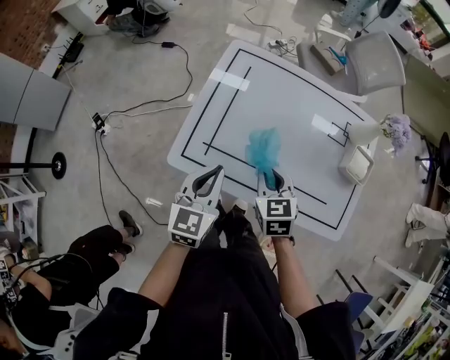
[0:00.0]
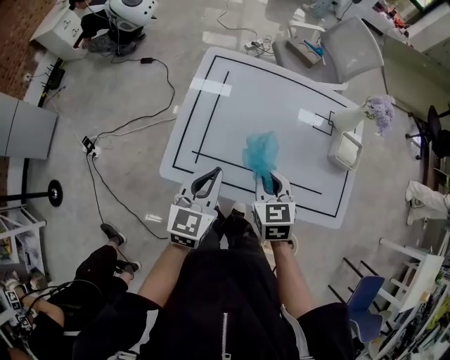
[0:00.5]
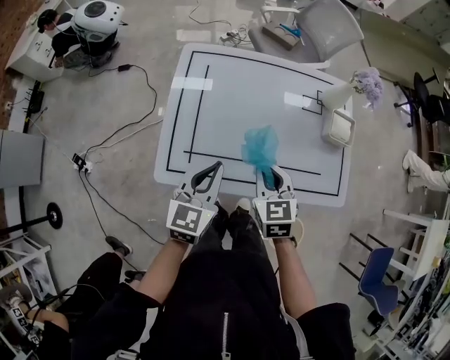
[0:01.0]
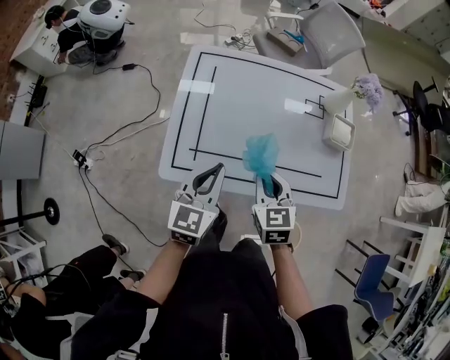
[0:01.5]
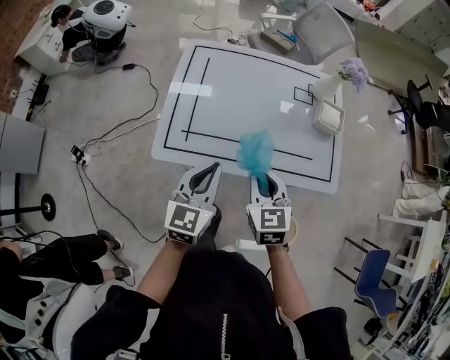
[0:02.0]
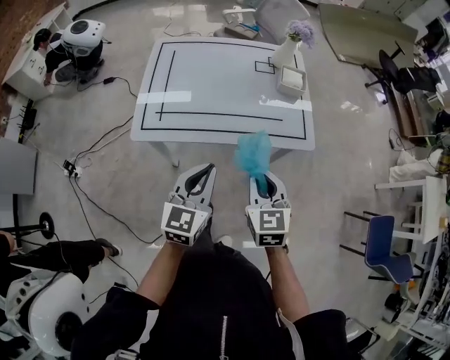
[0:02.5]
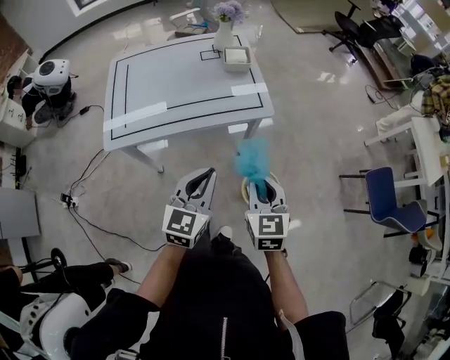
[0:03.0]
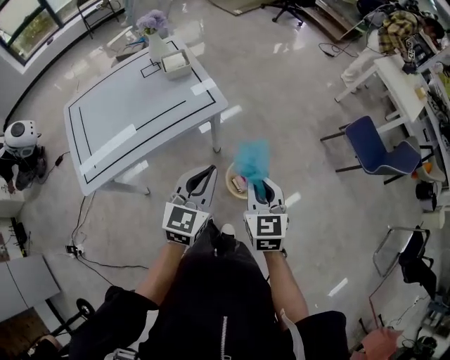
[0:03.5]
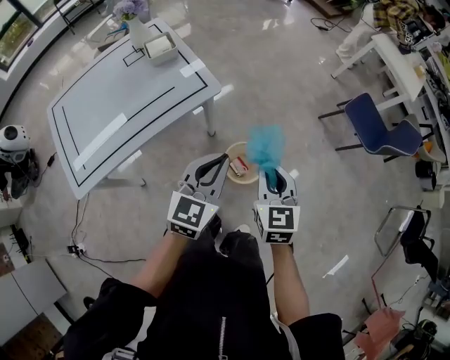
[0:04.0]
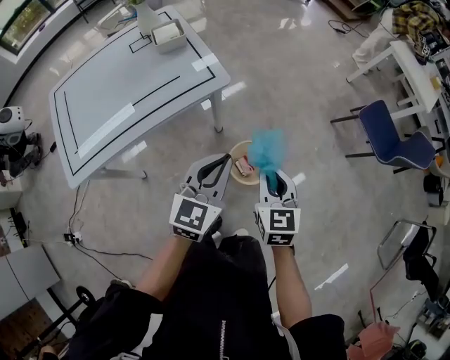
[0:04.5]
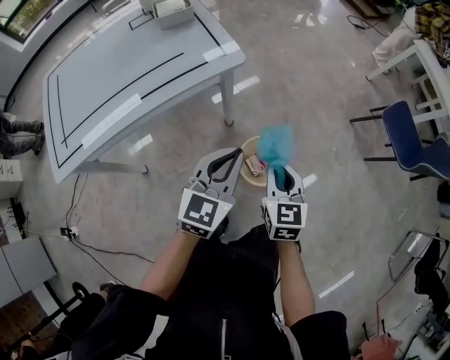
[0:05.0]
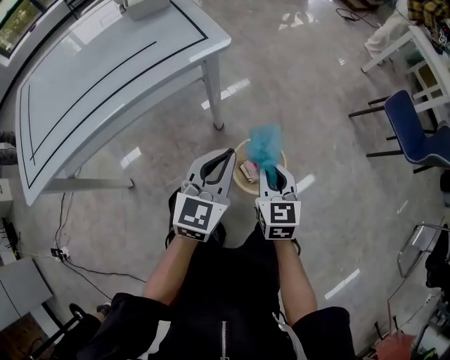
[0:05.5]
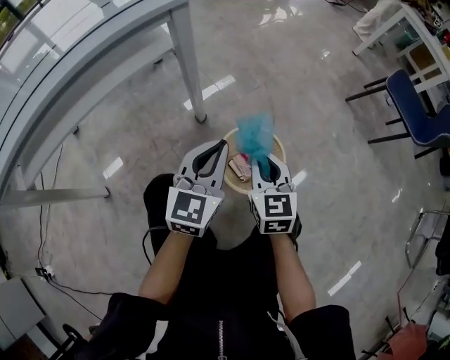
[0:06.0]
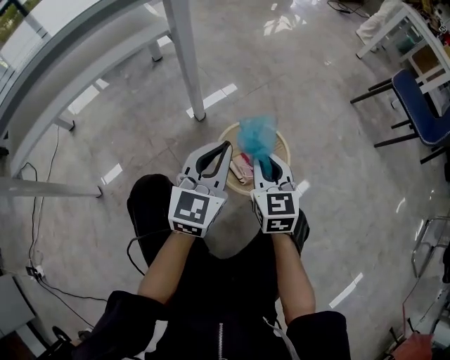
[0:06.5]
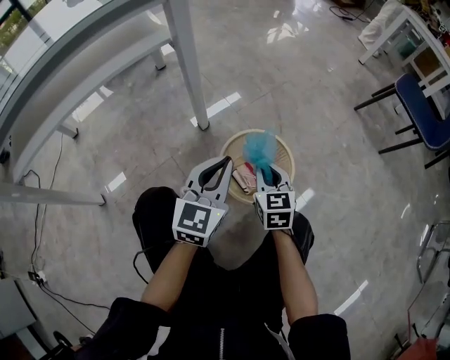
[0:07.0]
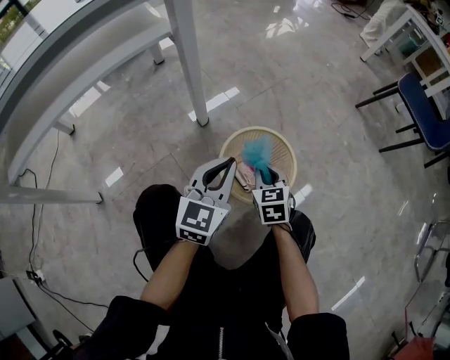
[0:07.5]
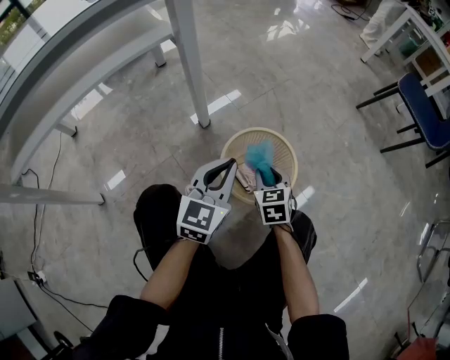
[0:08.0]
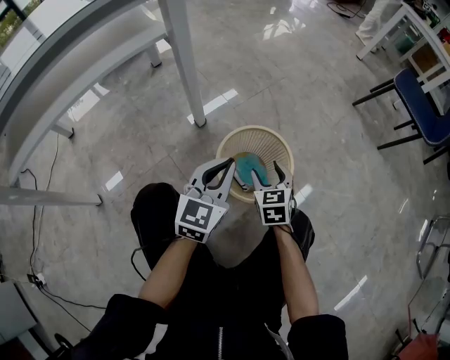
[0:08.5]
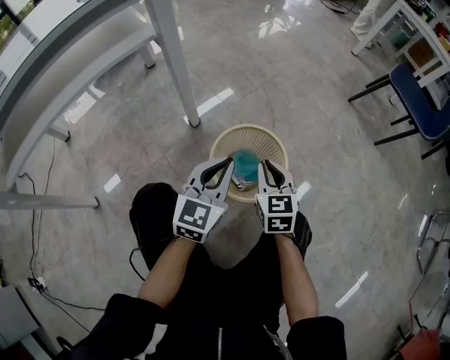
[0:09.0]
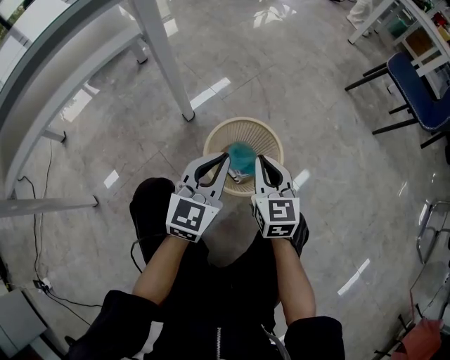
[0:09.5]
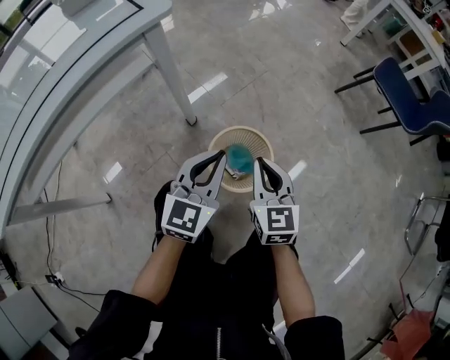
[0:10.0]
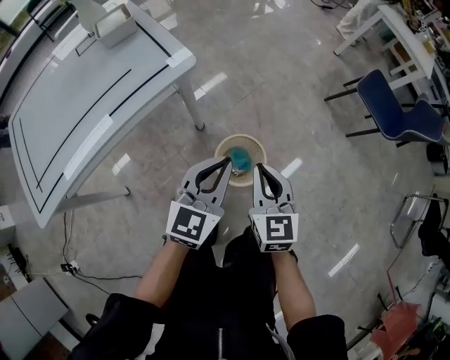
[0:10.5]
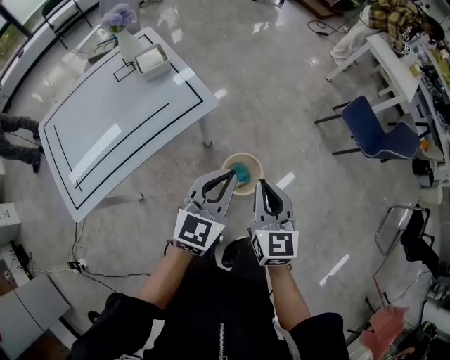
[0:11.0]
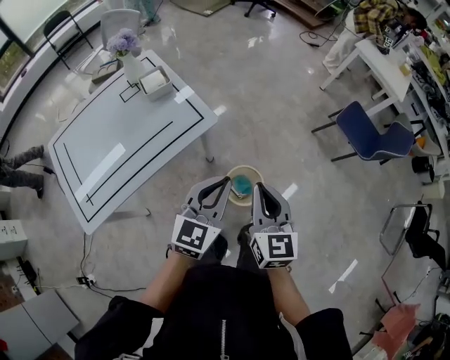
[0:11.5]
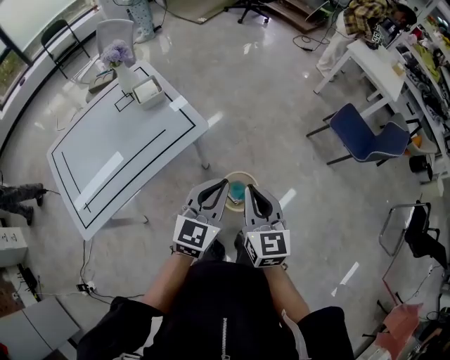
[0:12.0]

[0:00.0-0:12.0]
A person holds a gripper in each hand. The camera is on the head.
0:00.0 to 0:02.0: The left gripper moves backward, approximately 10 cm; the right gripper moves backward and upward, roughly 15 cm.
0:02.0 to 0:04.0: Both grippers are carried approximately 50 cm. The left gripper changes its angle by about 50 degrees. Meanwhile the right gripper swivels roughly 50 degrees.
0:04.0 to 0:06.0: Both grippers travel together downward, approximately 50 cm.
0:06.0 to 0:08.0: The right gripper heads downward, covering about 20 cm, while the left gripper travels downward by roughly 15 cm.
0:08.0 to 0:10.0: The left gripper goes roughly 15 cm upward. The right gripper is displaced upward by approximately 25 cm, rotates some 20 degrees, and opens and closes again.
0:10.0 to 0:12.0: Both grippers move upward, about 50 cm.

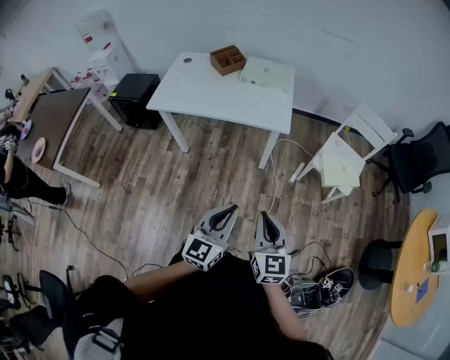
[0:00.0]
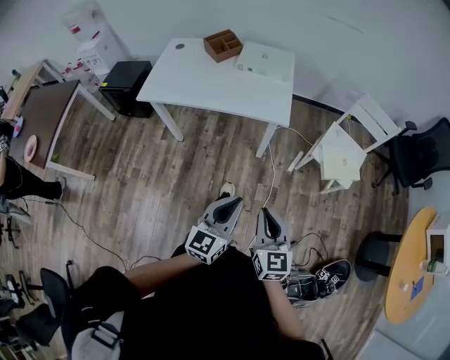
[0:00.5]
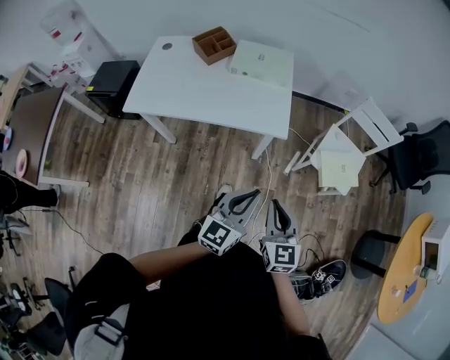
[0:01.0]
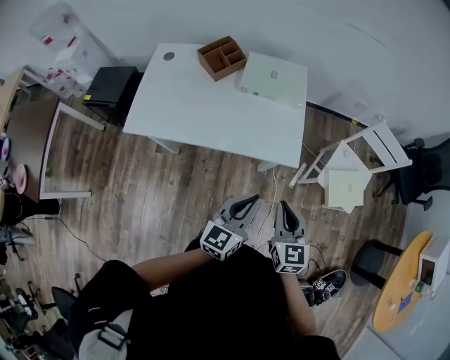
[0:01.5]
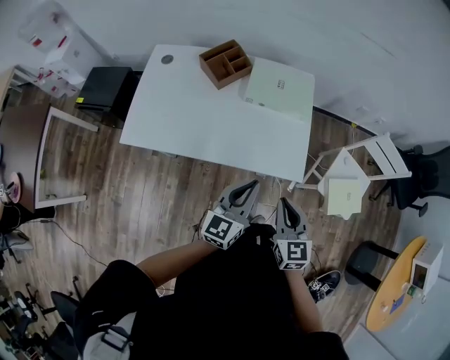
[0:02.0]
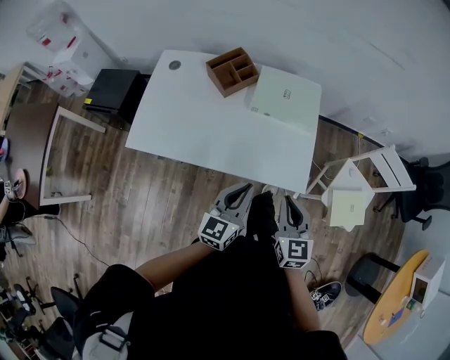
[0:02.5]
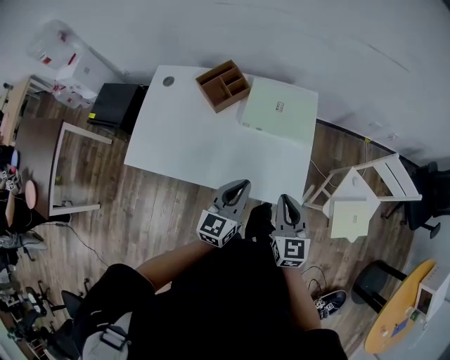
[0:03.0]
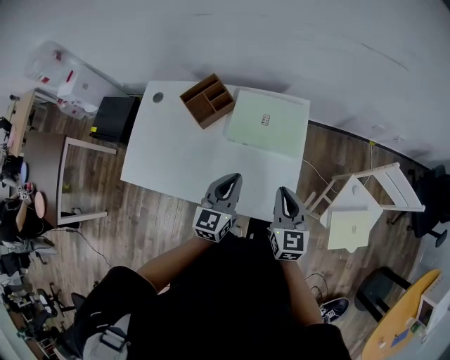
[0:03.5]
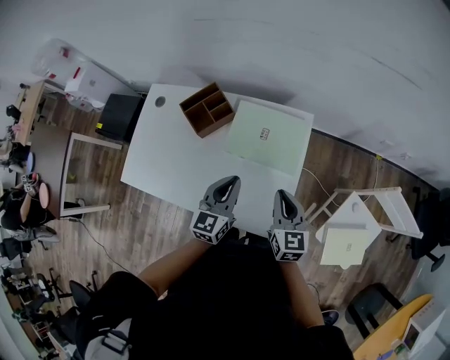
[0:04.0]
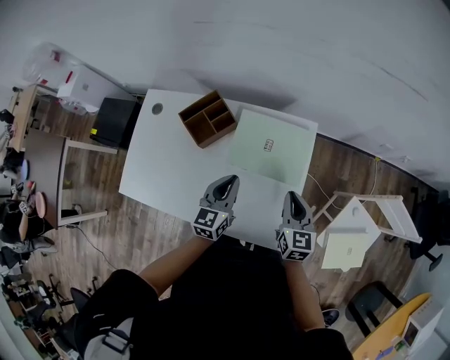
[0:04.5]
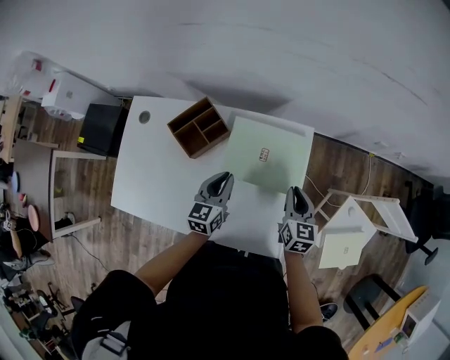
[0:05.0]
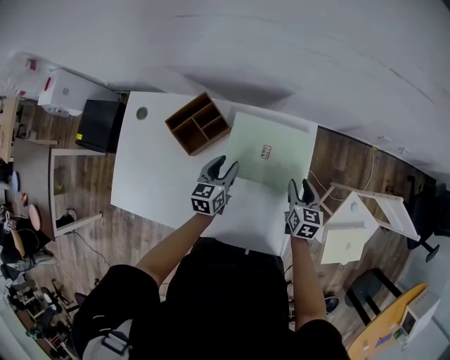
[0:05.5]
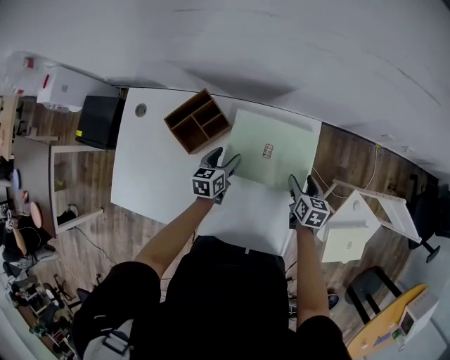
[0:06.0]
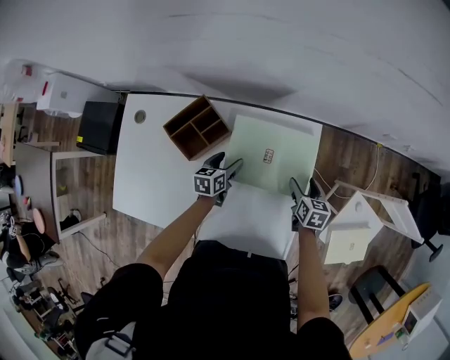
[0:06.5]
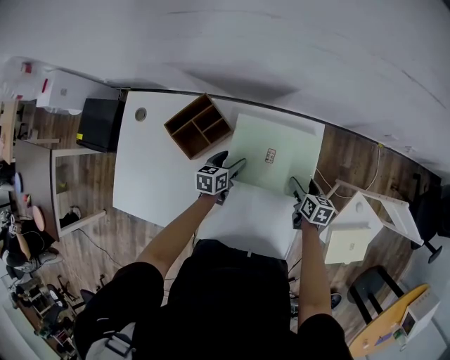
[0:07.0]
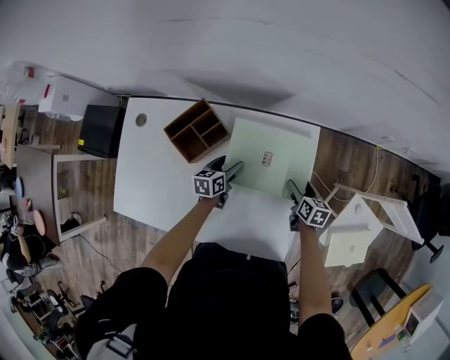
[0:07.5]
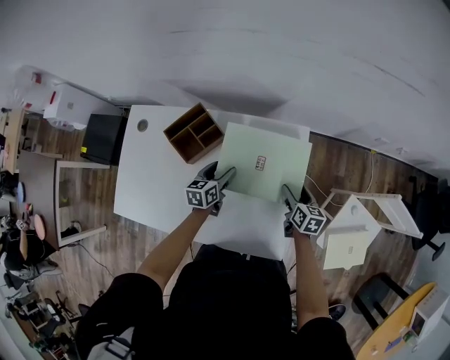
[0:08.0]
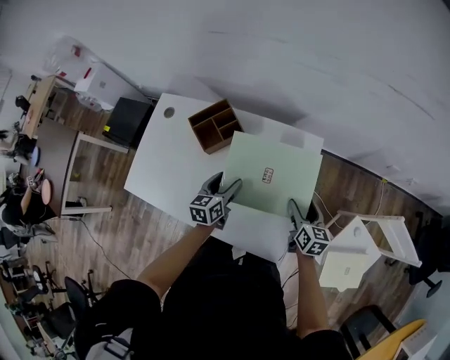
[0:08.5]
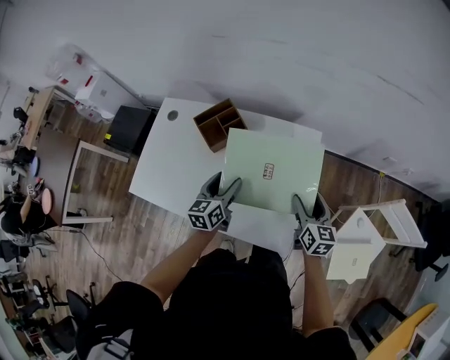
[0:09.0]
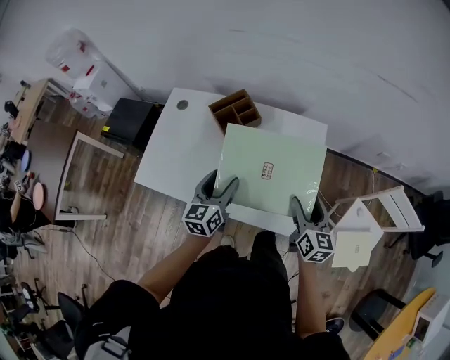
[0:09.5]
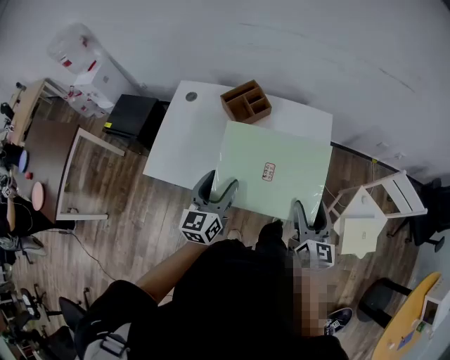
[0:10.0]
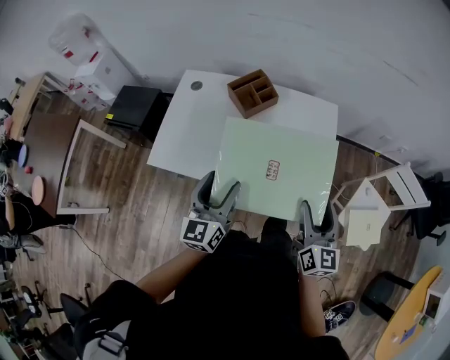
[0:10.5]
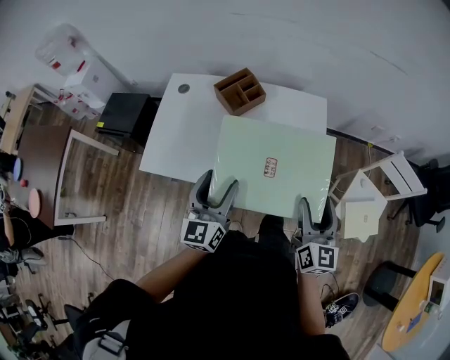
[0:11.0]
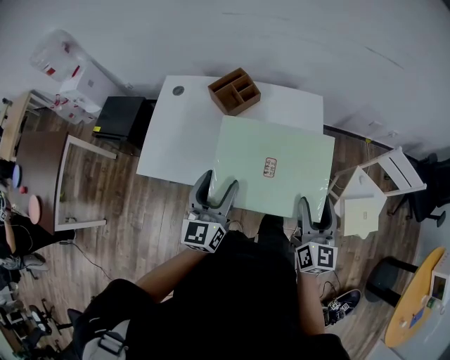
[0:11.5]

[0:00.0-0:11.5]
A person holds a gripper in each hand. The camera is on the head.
0:00.0 to 0:02.0: Both grippers are carried forward, roughly 50 cm.
0:02.0 to 0:04.0: The two grippers go about 30 cm forward.
0:04.0 to 0:06.0: The right gripper goes about 25 cm downward and forward, swivels about 30 degrees, and opens its fingers, while the left gripper heads downward, forward and to the left, covering some 30 cm, rotates some 30 degrees, and opens its fingers.
0:06.0 to 0:07.5: There are only small adjustments of the grippers.
0:07.5 to 0:09.5: The grippers both shift upward and backward by about 35 cm. The left gripper turns by some 30 degrees; the right gripper turns by about 30 degrees.
0:09.5 to 0:11.5: The grippers both shift backward and upward by some 15 cm.

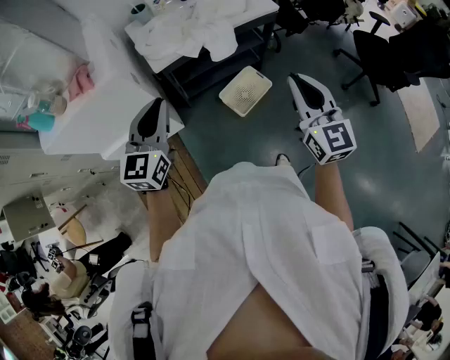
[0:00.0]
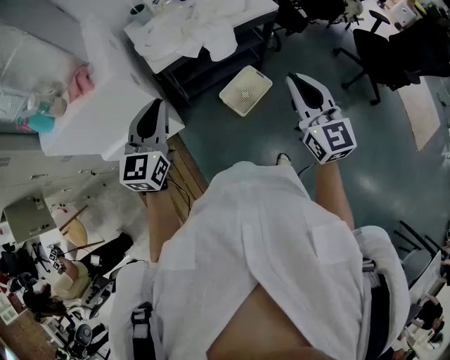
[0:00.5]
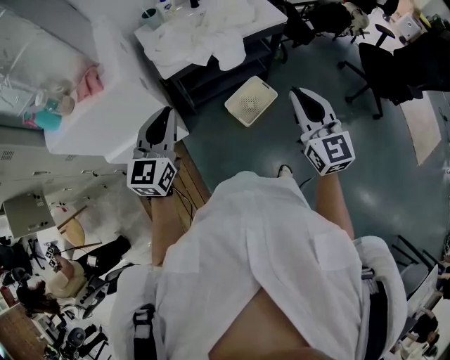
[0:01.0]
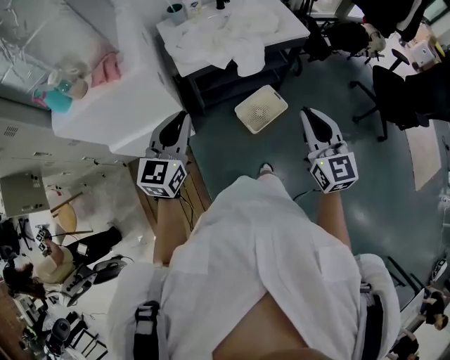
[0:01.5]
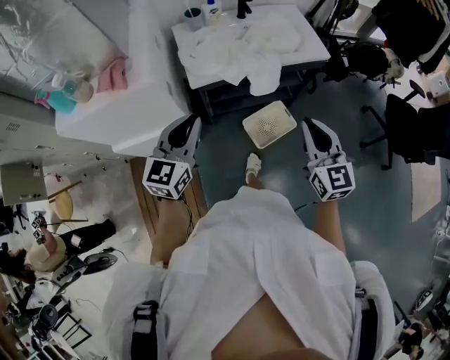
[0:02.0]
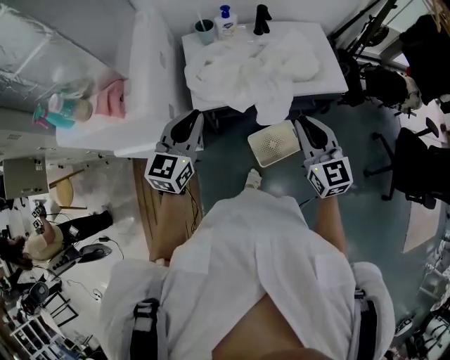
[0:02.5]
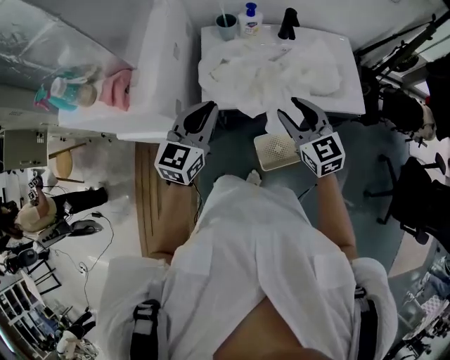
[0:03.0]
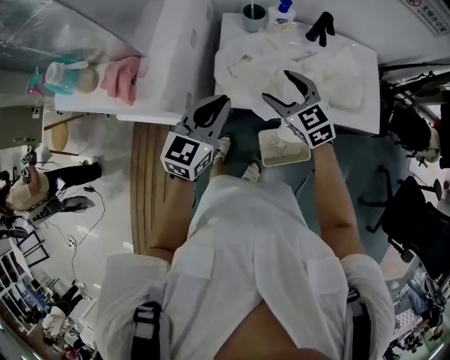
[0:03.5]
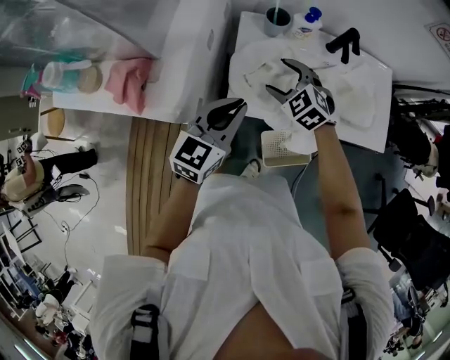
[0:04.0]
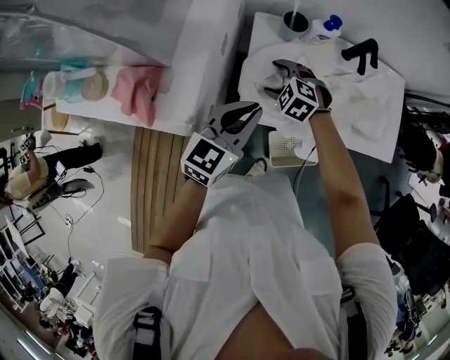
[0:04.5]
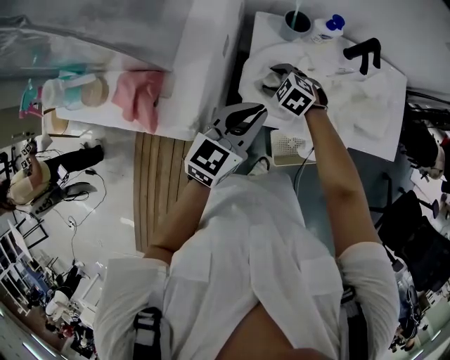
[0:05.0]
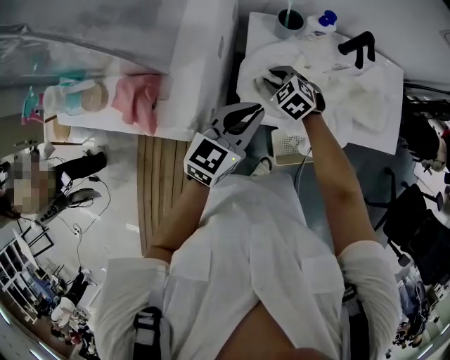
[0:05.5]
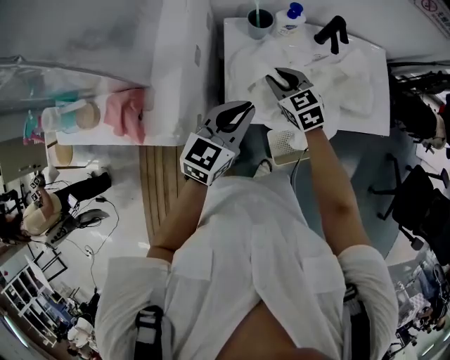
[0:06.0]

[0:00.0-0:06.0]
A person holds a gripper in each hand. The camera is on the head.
0:00.0 to 0:02.0: The left gripper is displaced forward by some 5 cm, while the right gripper is displaced forward and downward by roughly 10 cm.
0:02.0 to 0:04.0: The left gripper moves about 25 cm, while the right gripper moves some 50 cm, tips its fingers downward by some 40 degrees, and opens.
0:04.0 to 0:06.0: The right gripper moves approximately 10 cm downward and comes back, swivels approximately 30 degrees, and closes.
